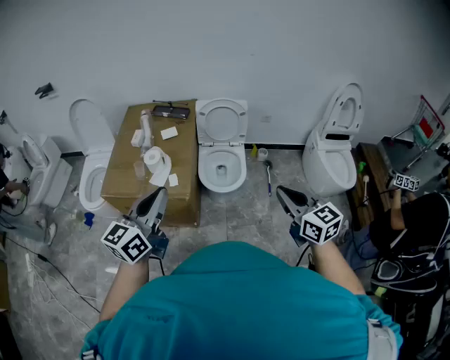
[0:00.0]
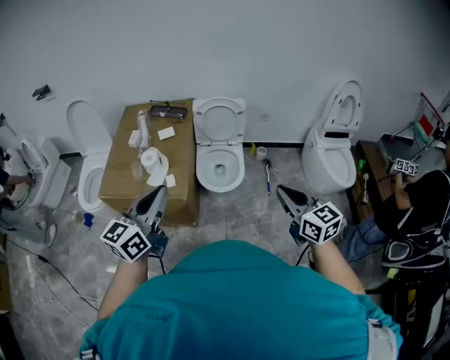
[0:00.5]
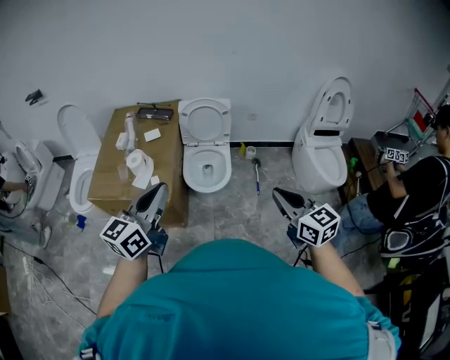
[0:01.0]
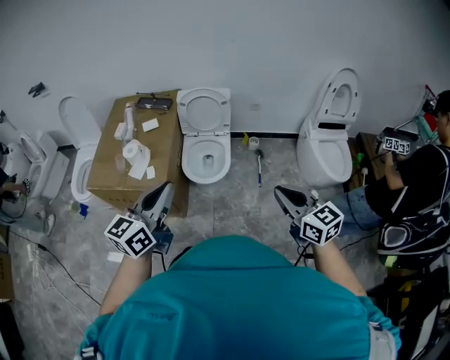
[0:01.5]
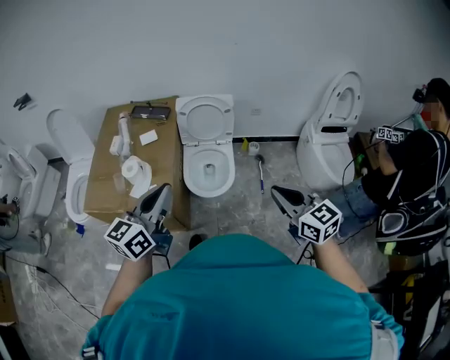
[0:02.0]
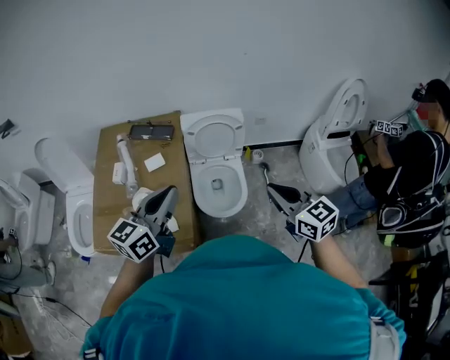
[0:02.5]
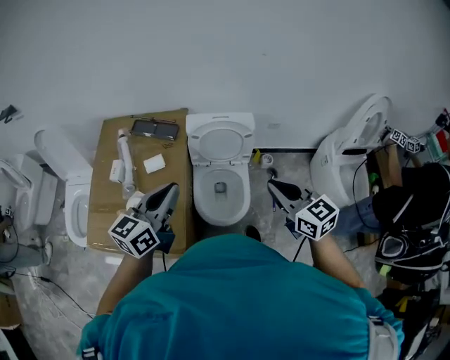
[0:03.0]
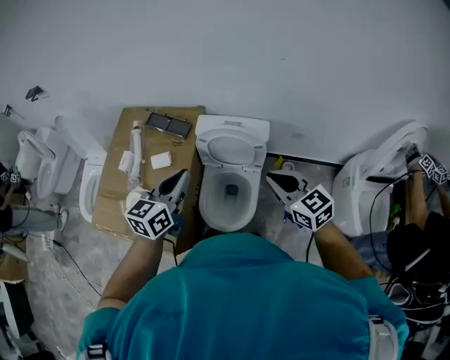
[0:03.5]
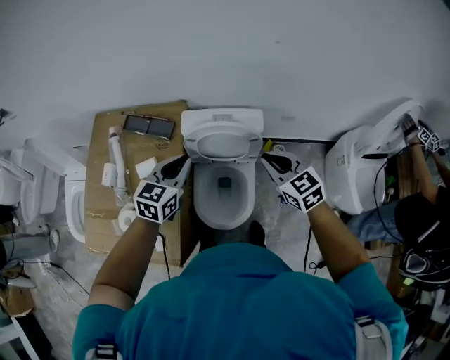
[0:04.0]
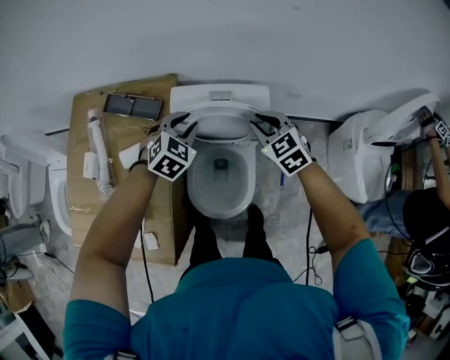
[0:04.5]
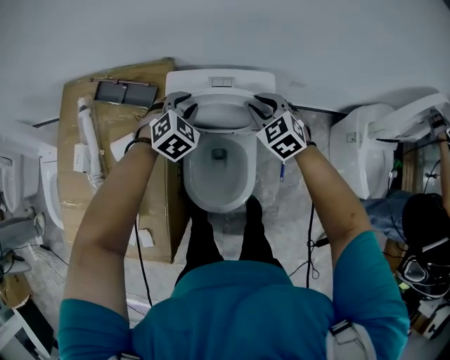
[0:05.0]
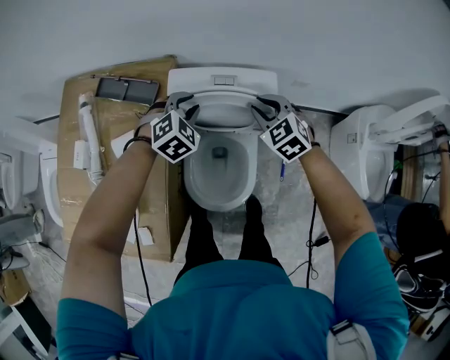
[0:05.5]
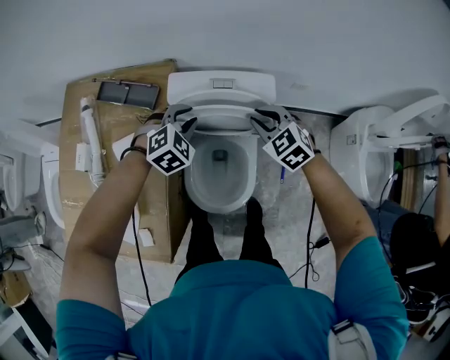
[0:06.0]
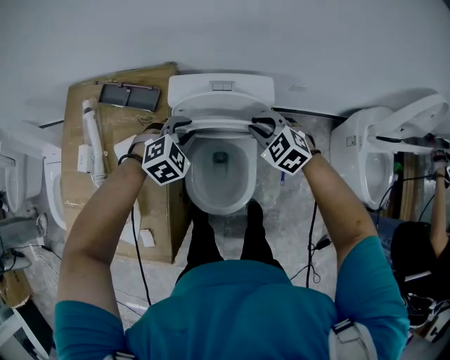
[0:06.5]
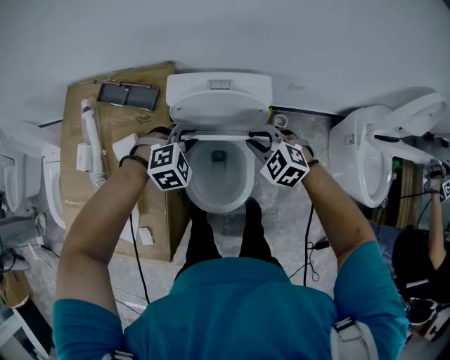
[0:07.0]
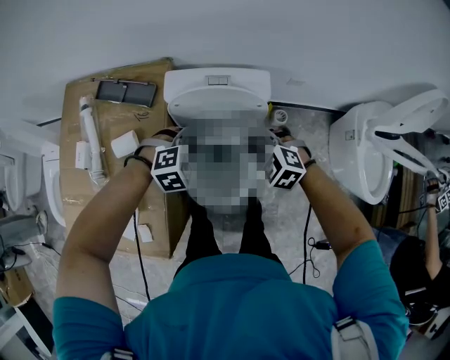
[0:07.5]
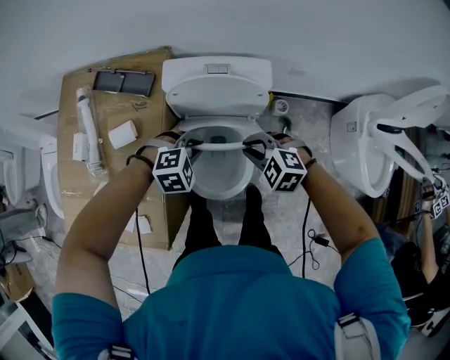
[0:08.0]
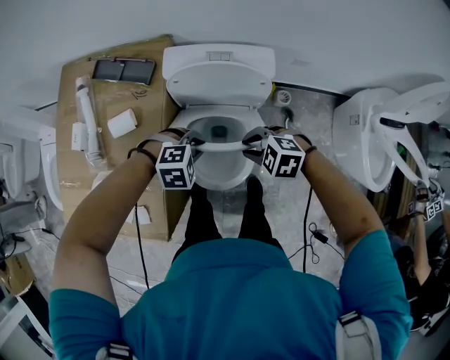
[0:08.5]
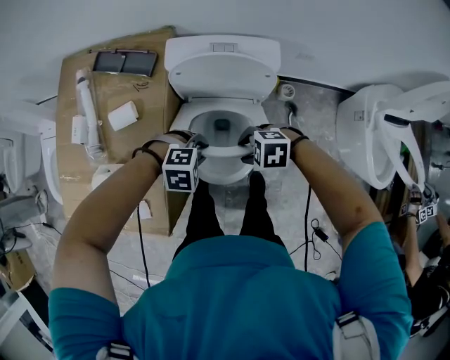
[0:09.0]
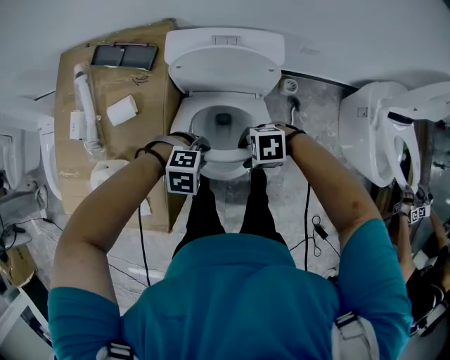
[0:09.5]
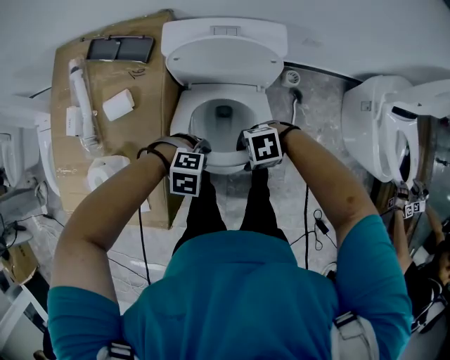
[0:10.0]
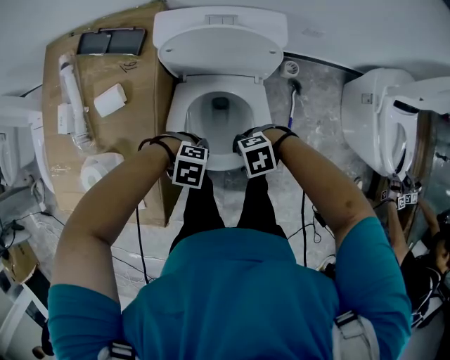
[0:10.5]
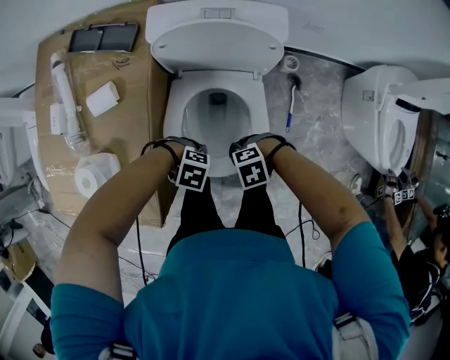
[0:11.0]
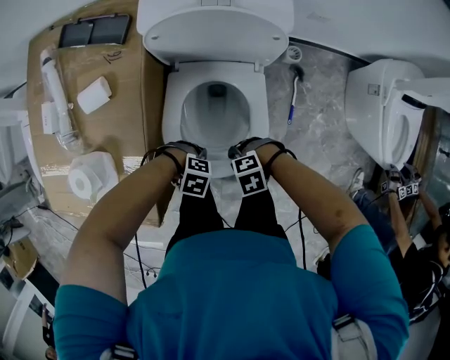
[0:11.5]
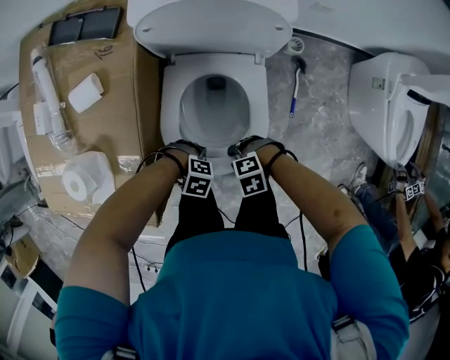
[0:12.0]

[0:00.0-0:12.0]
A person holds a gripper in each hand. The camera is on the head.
0:00.0 to 0:02.0: The two grippers go some 15 cm forward and to the right.
0:02.0 to 0:04.0: The two grippers travel together, forward, approximately 50 cm. The left gripper changes its angle by about 30 degrees.
0:04.0 to 0:06.0: Both grippers move downward and forward, roughly 20 cm. The left gripper rolls clockwise, seen from behind, by some 40 degrees; the right gripper rotates approximately 20 degrees.
0:06.0 to 0:08.0: The two grippers go roughly 15 cm backward. The left gripper rotates some 20 degrees; the right gripper changes its angle by roughly 30 degrees.
0:08.0 to 0:10.0: The left gripper moves roughly 15 cm, and turns by approximately 20 degrees; the right gripper changes place by roughly 15 cm, turns by about 50 degrees, and opens its fingers.
0:10.0 to 0:12.0: The grippers both shift downward by some 15 cm. The left gripper turns by roughly 20 degrees, and opens.

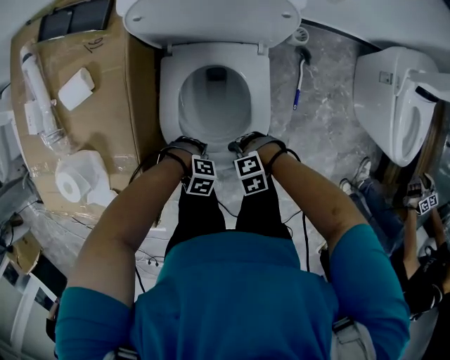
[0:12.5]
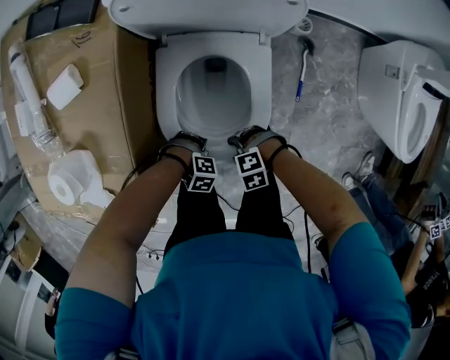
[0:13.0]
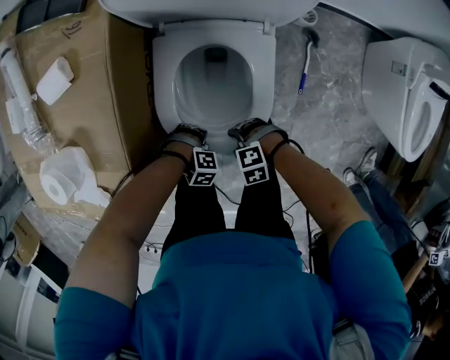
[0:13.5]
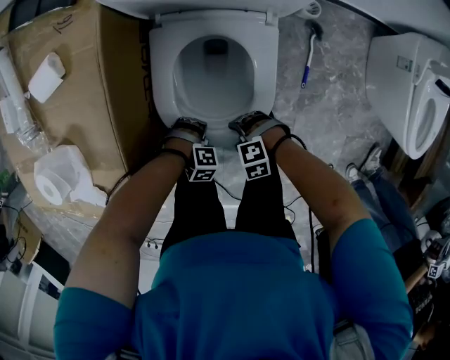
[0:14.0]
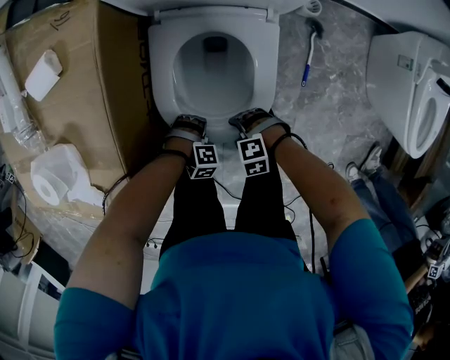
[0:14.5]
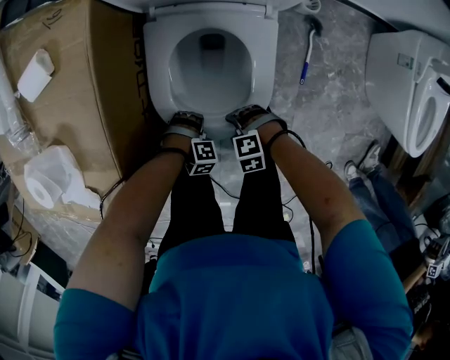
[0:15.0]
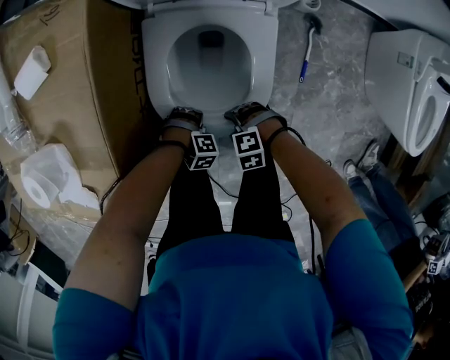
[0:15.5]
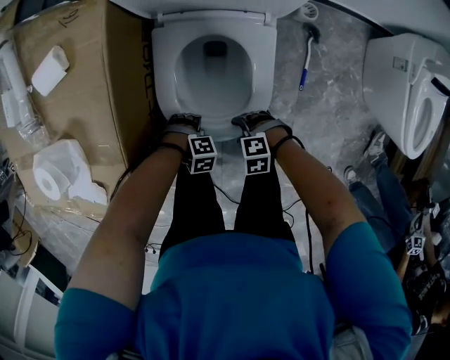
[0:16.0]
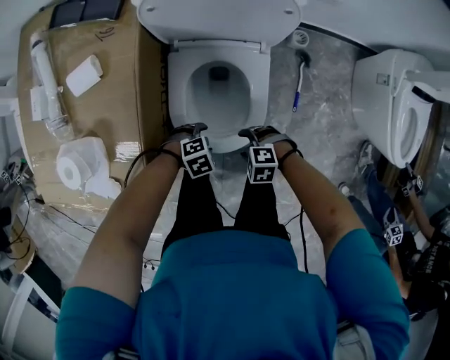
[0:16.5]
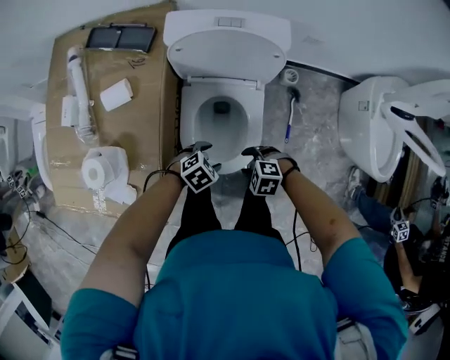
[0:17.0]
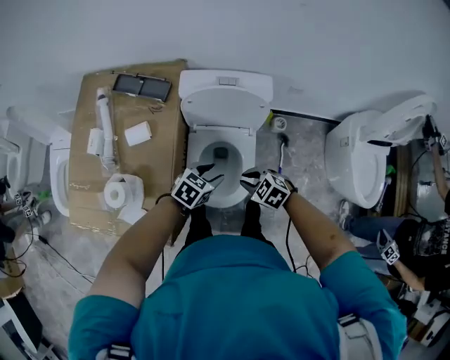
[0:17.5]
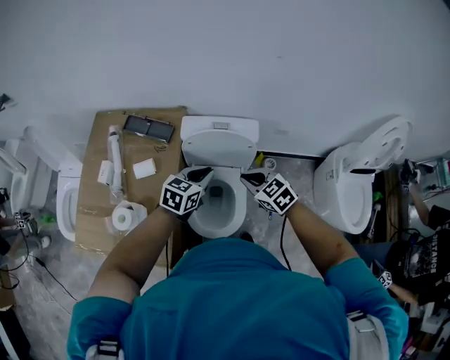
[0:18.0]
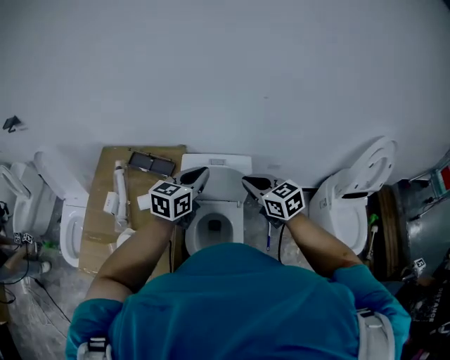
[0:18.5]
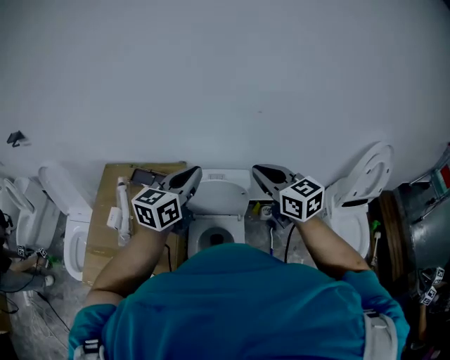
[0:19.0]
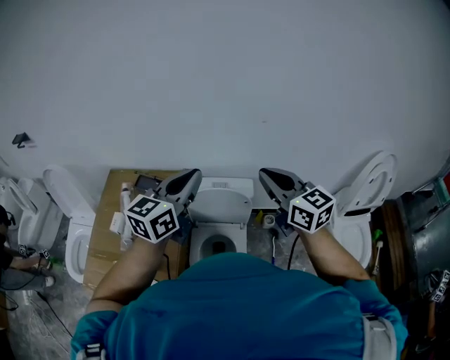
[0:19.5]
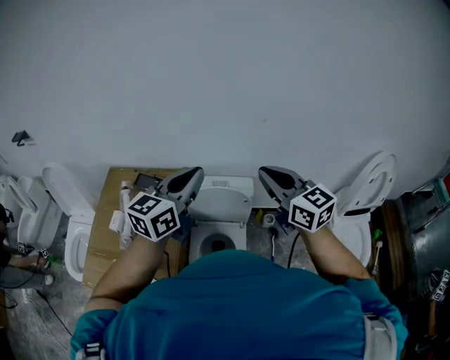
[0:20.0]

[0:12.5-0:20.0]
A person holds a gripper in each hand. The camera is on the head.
0:12.5 to 0:14.5: The two grippers go approximately 10 cm downward.
0:14.5 to 0:16.5: Both grippers move upward, approximately 10 cm. The left gripper changes its angle by about 40 degrees.
0:16.5 to 0:18.0: The two grippers go some 40 cm upward. The left gripper points its fingers some 40 degrees further upward, and closes up, while the right gripper turns by approximately 50 degrees, and closes.
0:18.0 to 0:20.0: The grippers both shift upward by approximately 30 cm. The right gripper angles its fingers upward, by roughly 40 degrees. Meanwhile the left gripper tips its fingers upward by roughly 30 degrees.

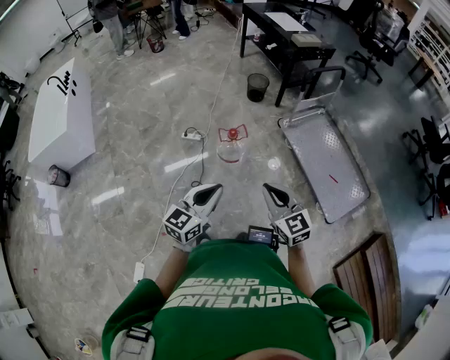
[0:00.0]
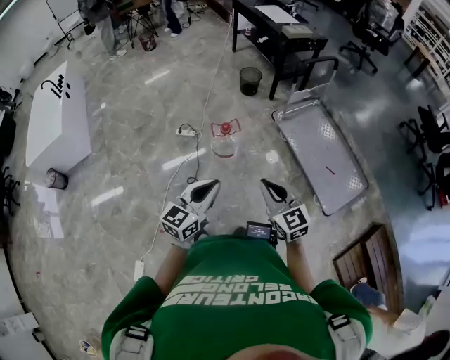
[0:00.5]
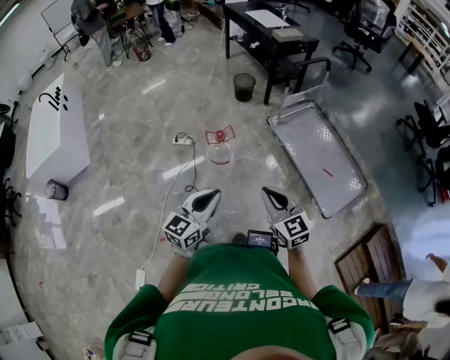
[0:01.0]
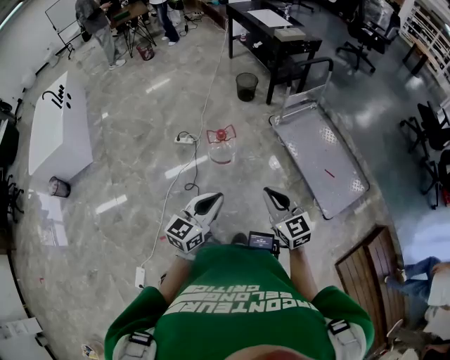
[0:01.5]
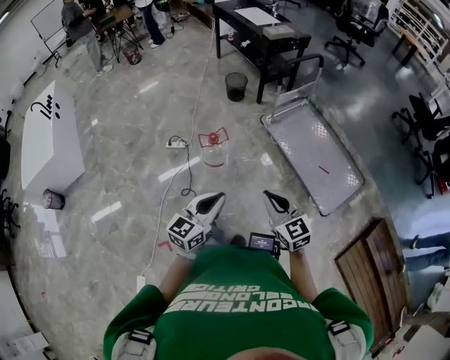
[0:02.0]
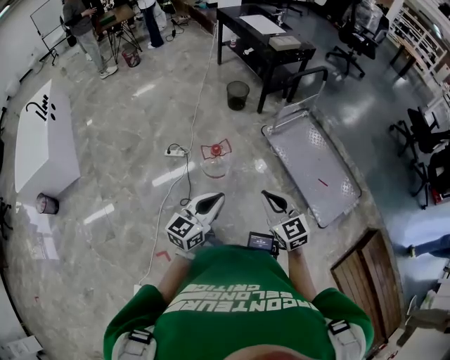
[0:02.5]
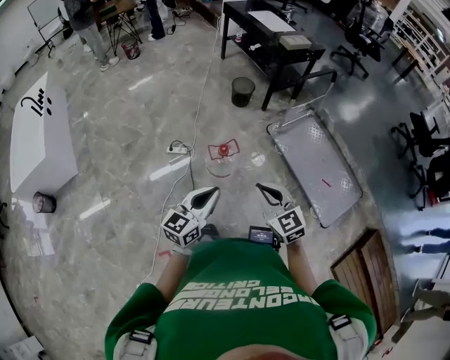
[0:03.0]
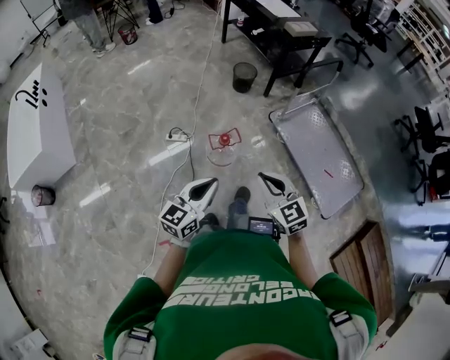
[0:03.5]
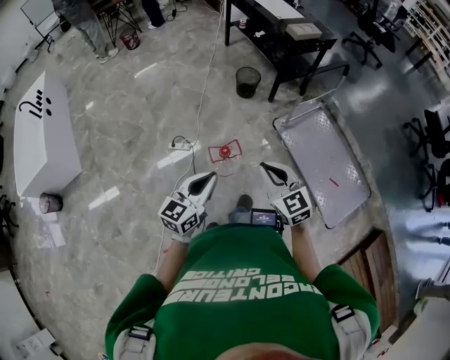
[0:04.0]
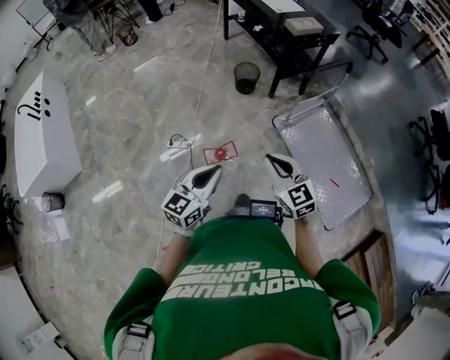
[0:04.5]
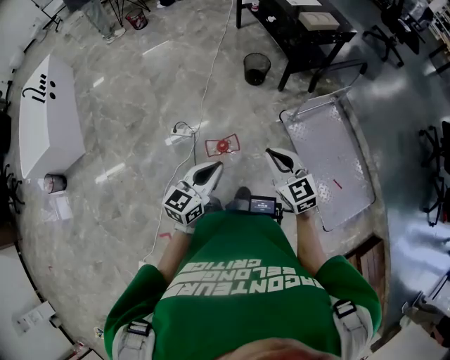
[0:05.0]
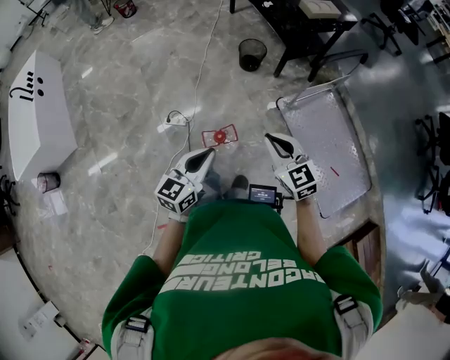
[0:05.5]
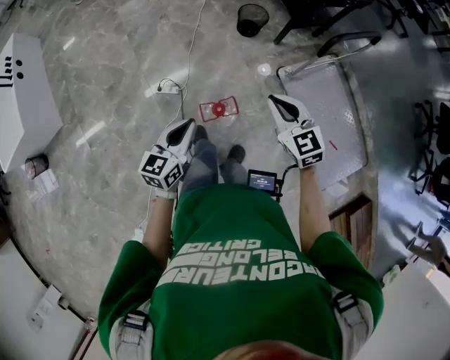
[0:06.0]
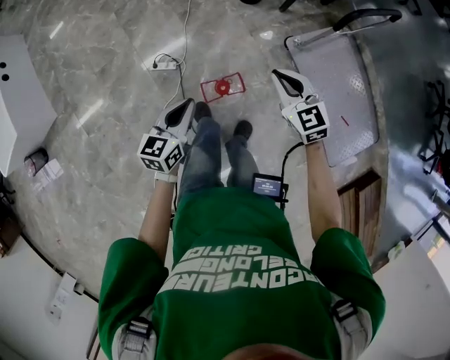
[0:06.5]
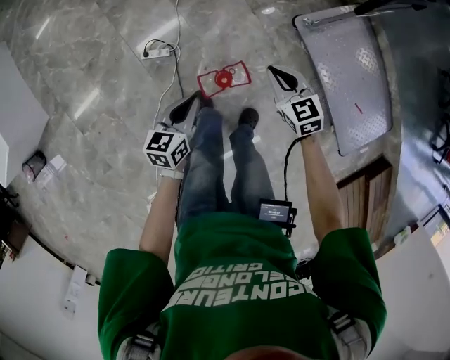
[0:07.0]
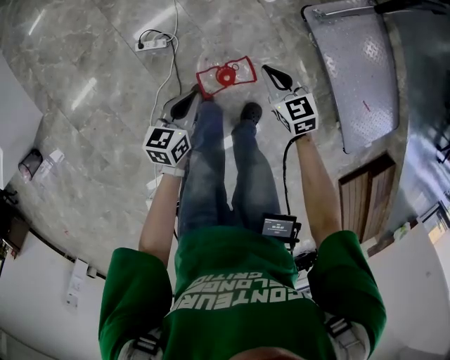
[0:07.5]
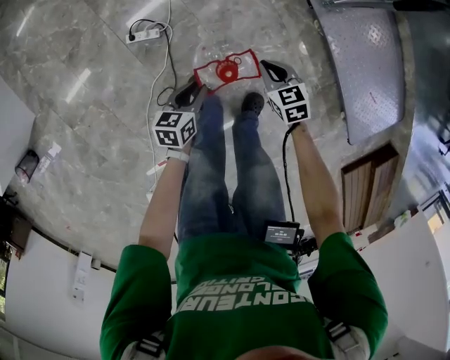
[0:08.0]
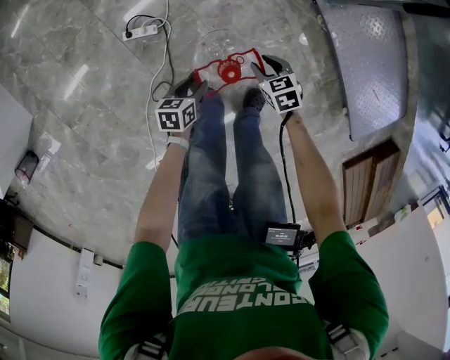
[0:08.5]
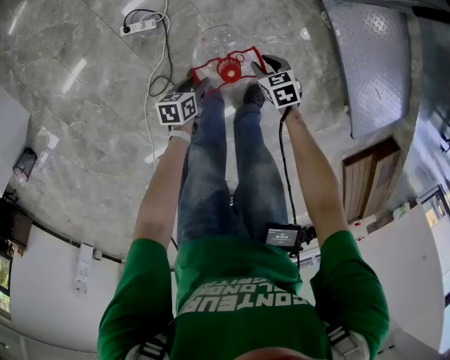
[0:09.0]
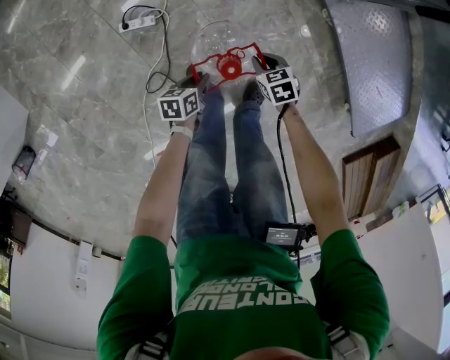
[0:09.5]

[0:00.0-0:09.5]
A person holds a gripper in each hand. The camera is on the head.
0:00.0 to 0:02.0: The two grippers go approximately 10 cm to the right.
0:02.0 to 0:04.0: The two grippers go approximately 25 cm forward and to the left.
0:04.0 to 0:05.5: Both grippers travel together forward, about 10 cm.
0:05.5 to 0:07.5: The grippers both shift downward by about 35 cm. The right gripper swivels some 20 degrees. The left gripper turns by some 30 degrees.
0:07.5 to 0:09.5: The grippers both shift downward by about 20 cm. The left gripper changes its angle by some 30 degrees, and opens and closes again, while the right gripper swivels roughly 30 degrees, and opens, then closes once more.
